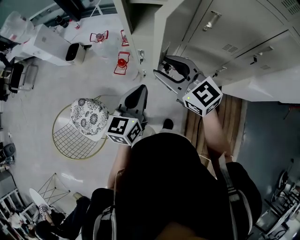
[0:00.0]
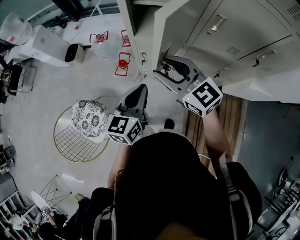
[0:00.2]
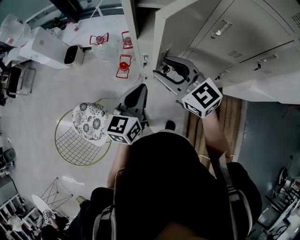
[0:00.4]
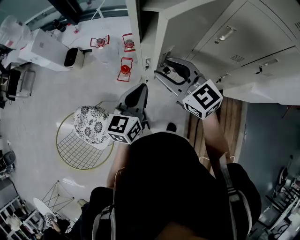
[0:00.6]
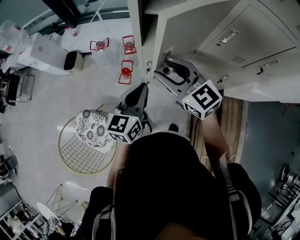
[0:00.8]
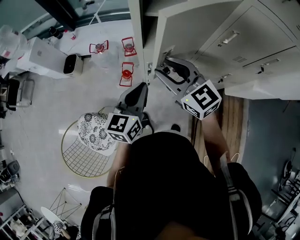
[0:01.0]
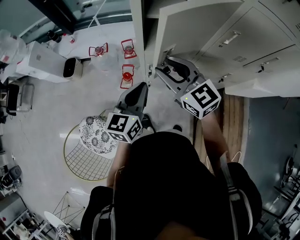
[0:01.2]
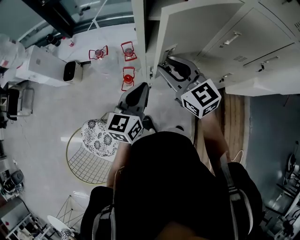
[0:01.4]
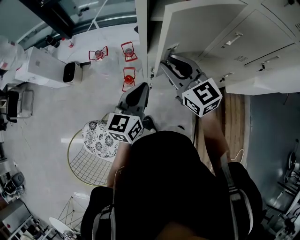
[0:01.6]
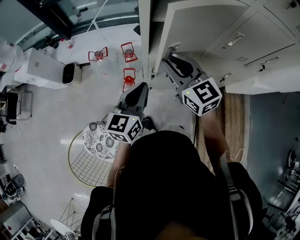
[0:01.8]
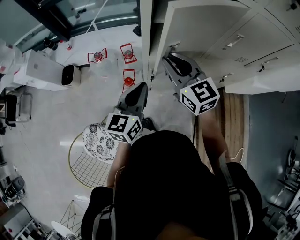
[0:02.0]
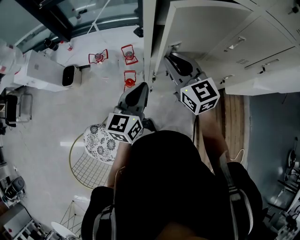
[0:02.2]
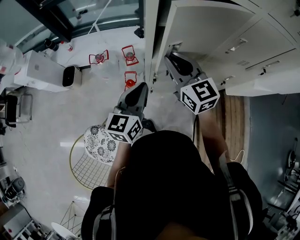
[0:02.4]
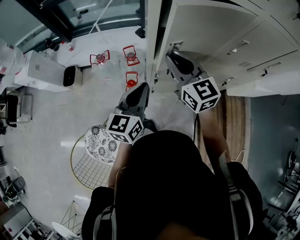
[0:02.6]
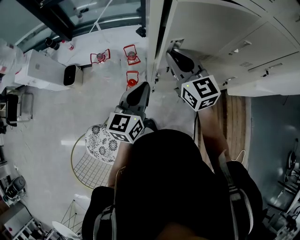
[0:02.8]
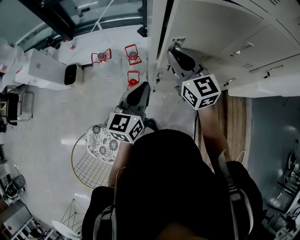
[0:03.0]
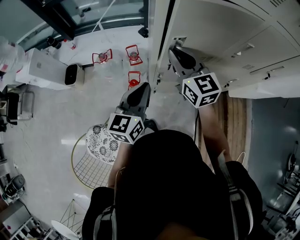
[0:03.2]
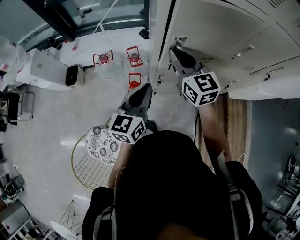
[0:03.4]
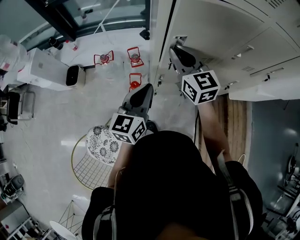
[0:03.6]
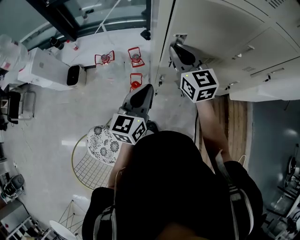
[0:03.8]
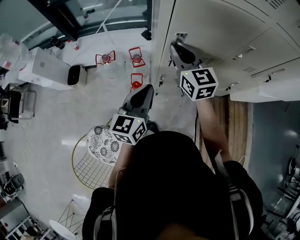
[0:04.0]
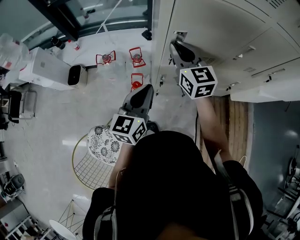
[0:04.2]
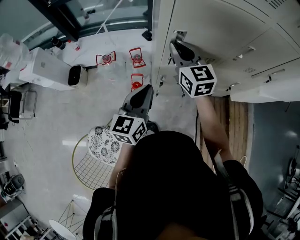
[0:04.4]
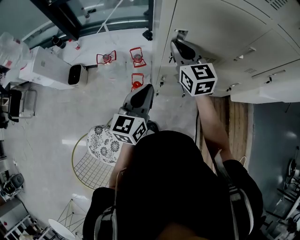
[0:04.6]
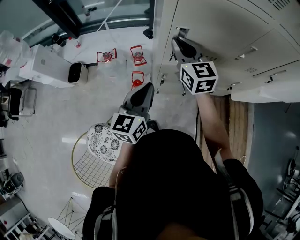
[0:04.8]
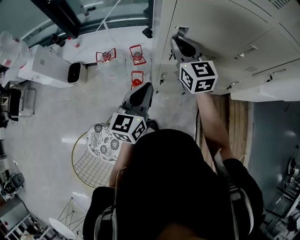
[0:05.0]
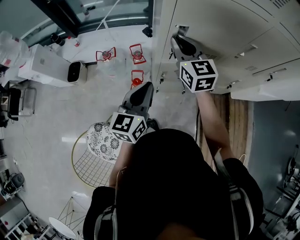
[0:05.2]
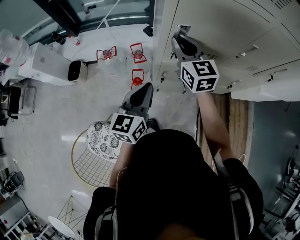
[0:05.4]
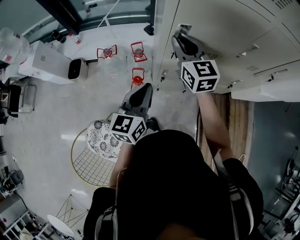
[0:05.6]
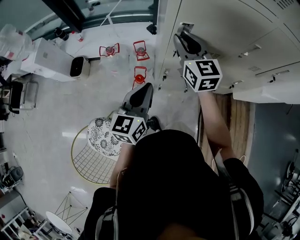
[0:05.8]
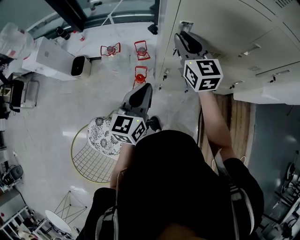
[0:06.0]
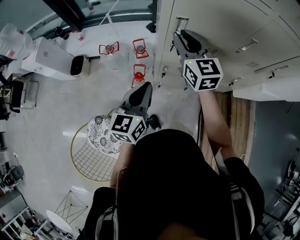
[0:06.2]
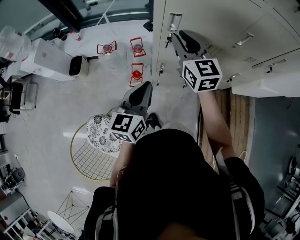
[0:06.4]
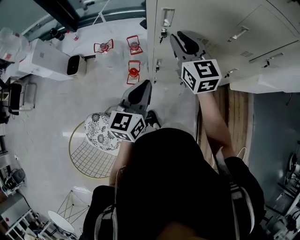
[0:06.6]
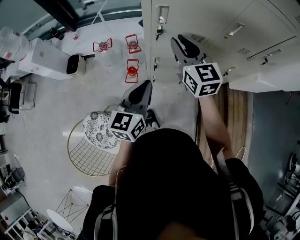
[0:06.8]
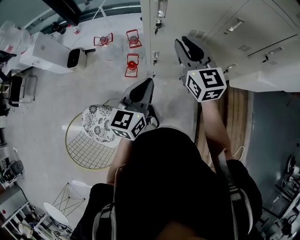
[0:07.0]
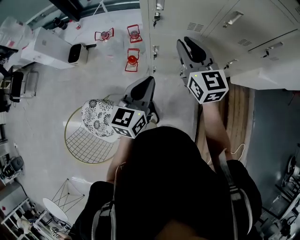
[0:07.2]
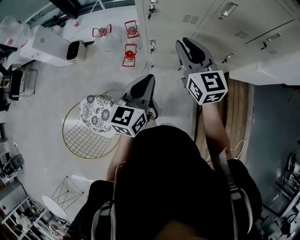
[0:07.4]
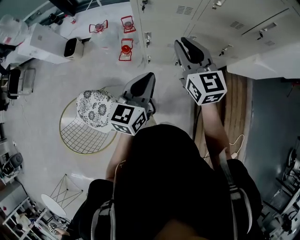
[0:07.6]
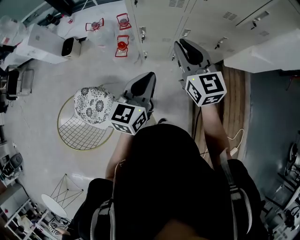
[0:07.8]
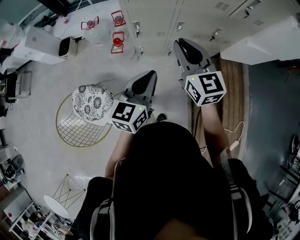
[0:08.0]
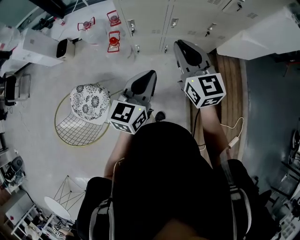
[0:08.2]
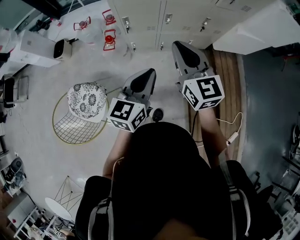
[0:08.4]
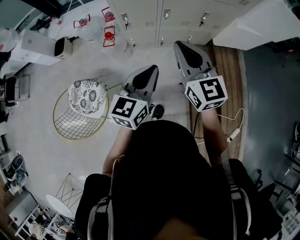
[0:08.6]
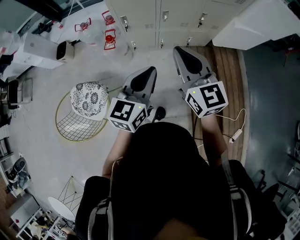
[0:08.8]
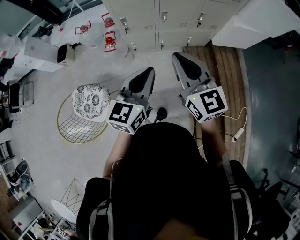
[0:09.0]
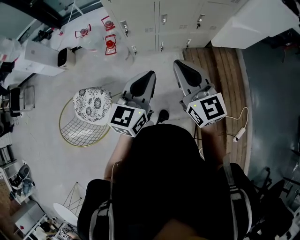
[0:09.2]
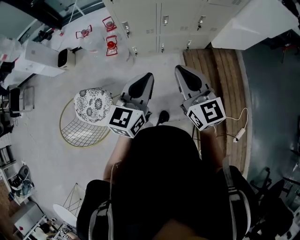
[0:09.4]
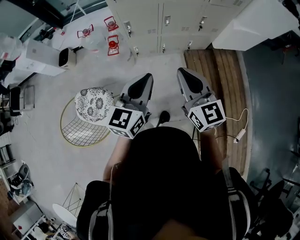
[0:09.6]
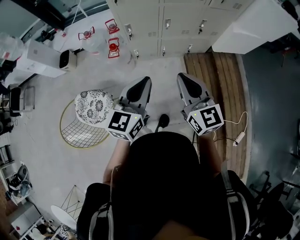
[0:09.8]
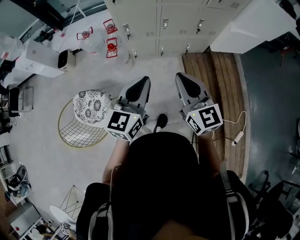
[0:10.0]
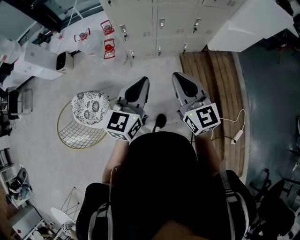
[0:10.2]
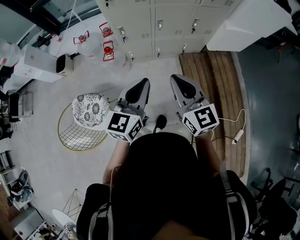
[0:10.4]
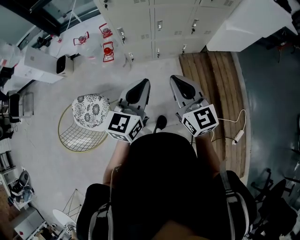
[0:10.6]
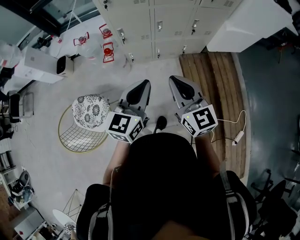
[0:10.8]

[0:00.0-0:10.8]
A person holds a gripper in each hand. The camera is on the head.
0:00.0 to 0:01.6: Both grippers move forward and to the left, some 15 cm. The right gripper closes up.
0:01.6 to 0:03.0: The right gripper is displaced forward by roughly 5 cm; the left gripper moves about 5 cm.
0:03.0 to 0:06.2: The grippers make only small movements.
0:06.2 to 0:07.8: The grippers both shift backward and to the right by approximately 25 cm.
0:07.8 to 0:09.2: The grippers both shift backward and to the right by about 20 cm.
0:09.2 to 0:10.8: The grippers make only small movements.

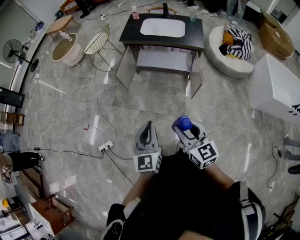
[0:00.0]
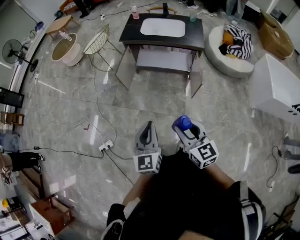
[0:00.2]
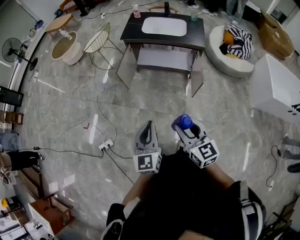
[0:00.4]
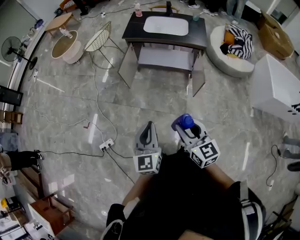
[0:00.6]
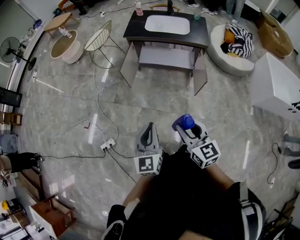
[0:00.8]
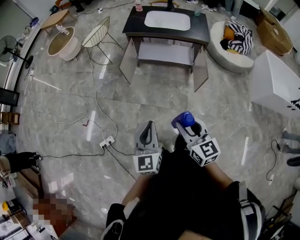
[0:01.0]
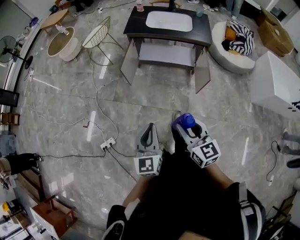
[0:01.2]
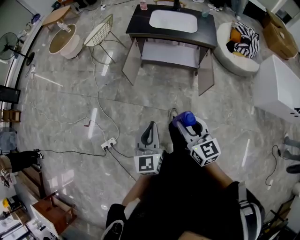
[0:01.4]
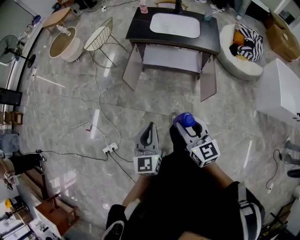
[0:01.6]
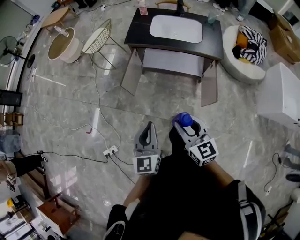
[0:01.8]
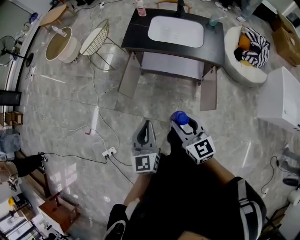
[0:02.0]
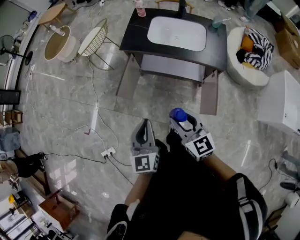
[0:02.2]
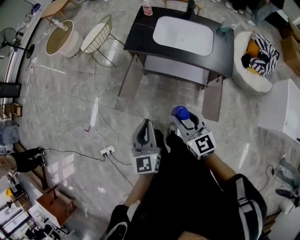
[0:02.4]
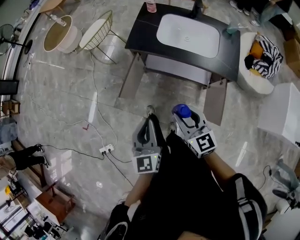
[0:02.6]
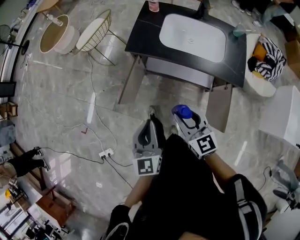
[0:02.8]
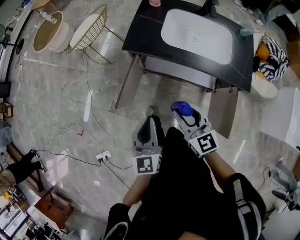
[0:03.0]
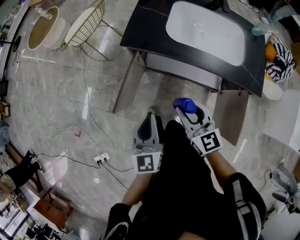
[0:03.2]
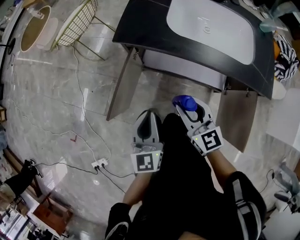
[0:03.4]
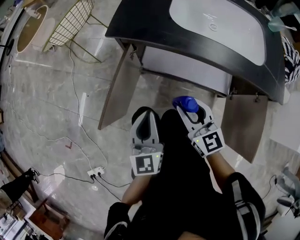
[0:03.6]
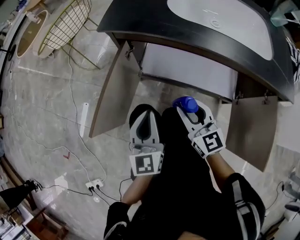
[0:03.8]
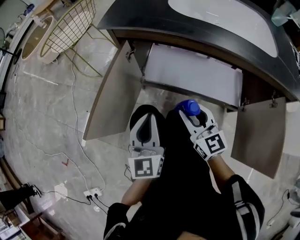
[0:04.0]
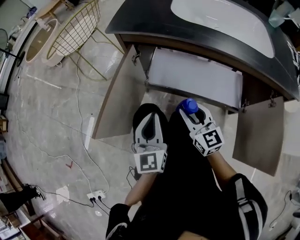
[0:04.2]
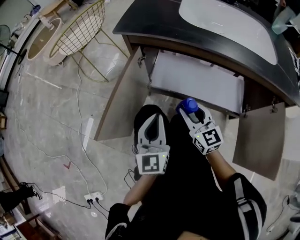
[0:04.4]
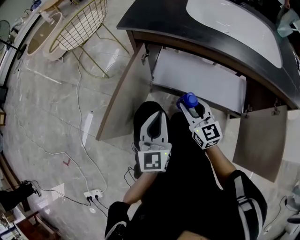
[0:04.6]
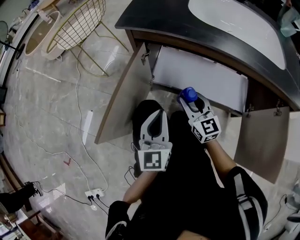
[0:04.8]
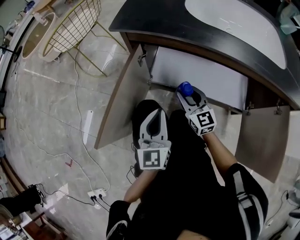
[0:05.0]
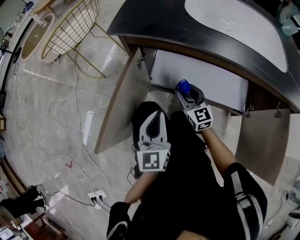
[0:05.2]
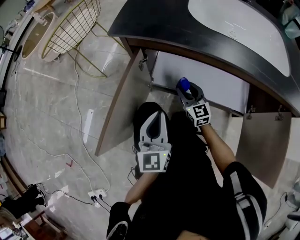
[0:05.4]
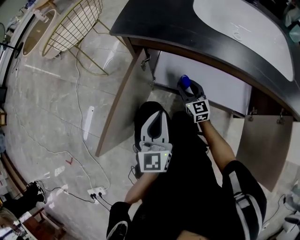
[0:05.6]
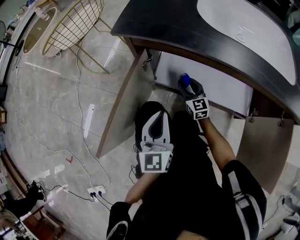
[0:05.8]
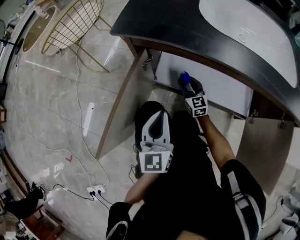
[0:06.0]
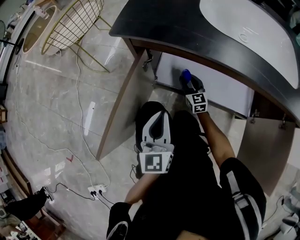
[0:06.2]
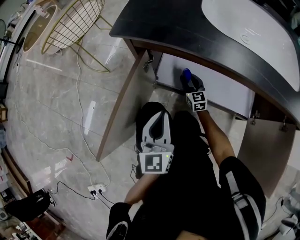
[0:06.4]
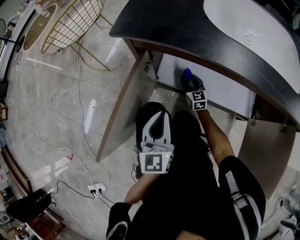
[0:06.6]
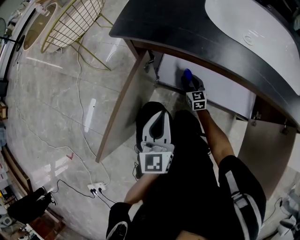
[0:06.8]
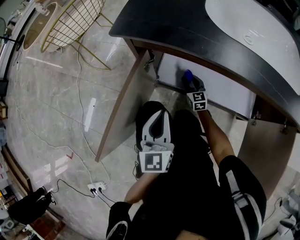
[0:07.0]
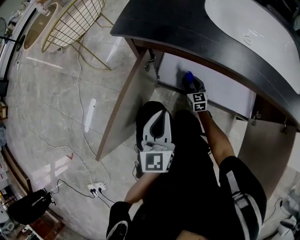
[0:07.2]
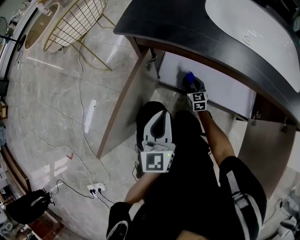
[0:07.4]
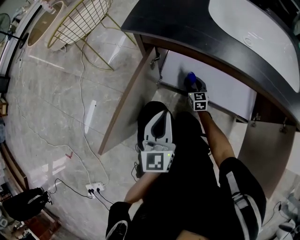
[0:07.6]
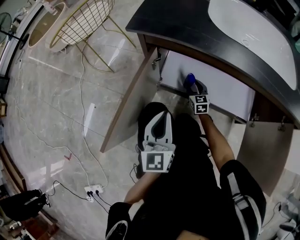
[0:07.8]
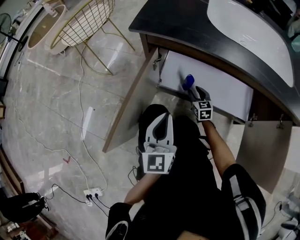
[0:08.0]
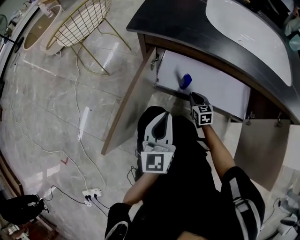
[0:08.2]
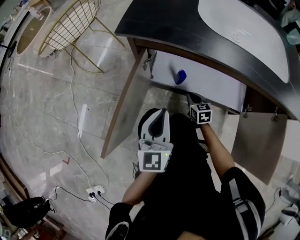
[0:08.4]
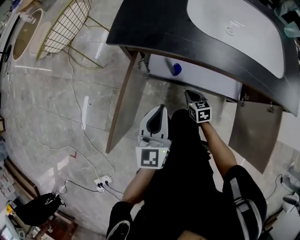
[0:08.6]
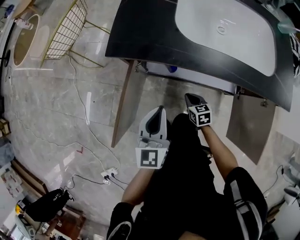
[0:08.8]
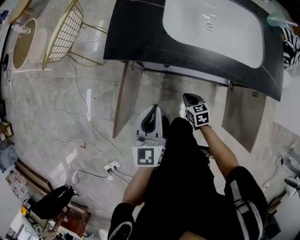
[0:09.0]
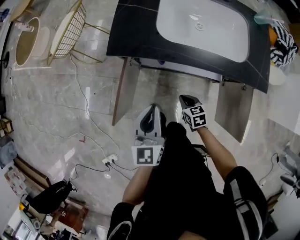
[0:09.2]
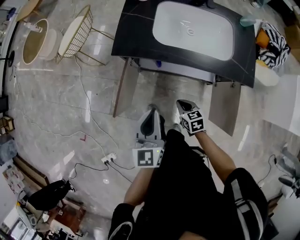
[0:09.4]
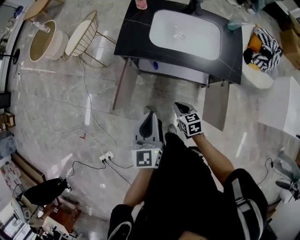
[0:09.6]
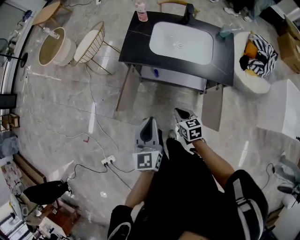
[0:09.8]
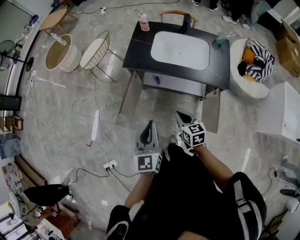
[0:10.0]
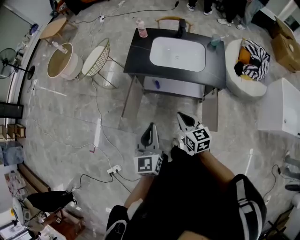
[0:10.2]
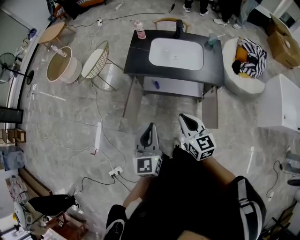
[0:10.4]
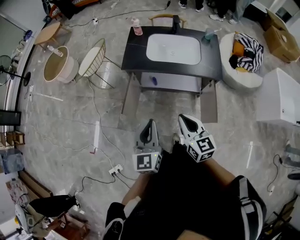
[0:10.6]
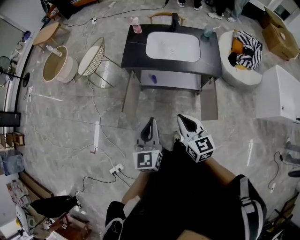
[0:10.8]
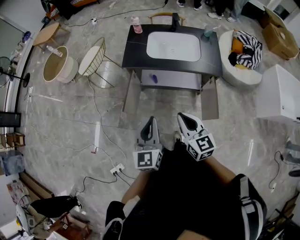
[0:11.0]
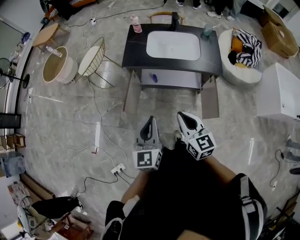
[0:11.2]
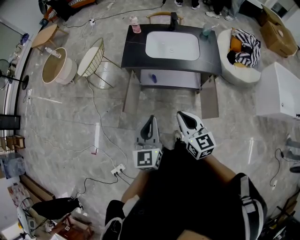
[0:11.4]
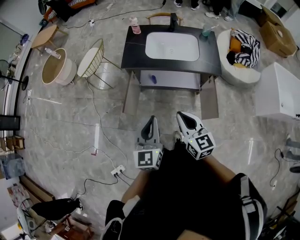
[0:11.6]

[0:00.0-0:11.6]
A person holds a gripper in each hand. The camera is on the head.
0:00.0 to 0:01.4: The right gripper moves forward and to the left, roughly 10 cm, while the left gripper is displaced to the left and forward by approximately 10 cm.
0:01.4 to 0:02.8: The two grippers travel together, forward, some 40 cm.
0:02.8 to 0:04.4: Both grippers move downward, some 40 cm.
0:04.4 to 0:05.8: The left gripper heads forward, covering roughly 5 cm; the right gripper travels forward and downward by approximately 25 cm.
0:05.8 to 0:07.2: The right gripper is displaced downward by about 10 cm.
0:07.2 to 0:08.8: The left gripper shifts roughly 15 cm upward. Meanwhile the right gripper travels backward and upward by some 20 cm, changes its angle by about 30 degrees, and closes up.
0:08.8 to 0:10.2: Both grippers travel together upward and backward, some 60 cm. The right gripper changes its angle by roughly 20 degrees.
0:10.2 to 0:11.6: The right gripper moves backward and upward, some 10 cm.

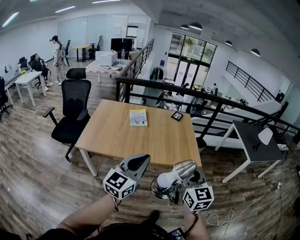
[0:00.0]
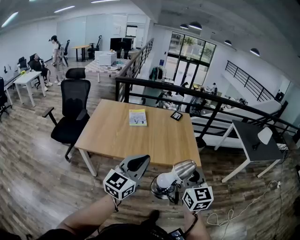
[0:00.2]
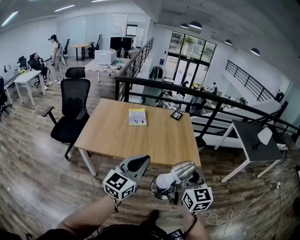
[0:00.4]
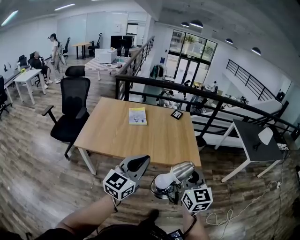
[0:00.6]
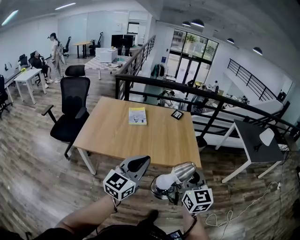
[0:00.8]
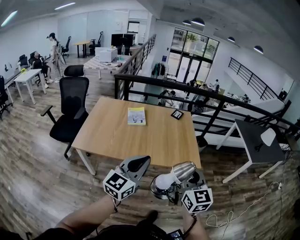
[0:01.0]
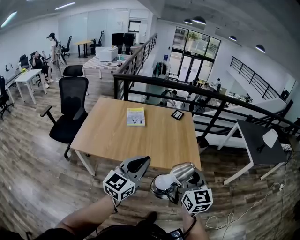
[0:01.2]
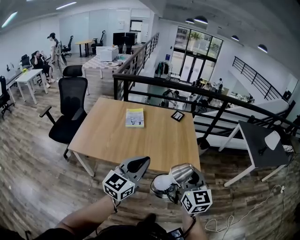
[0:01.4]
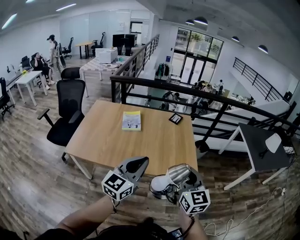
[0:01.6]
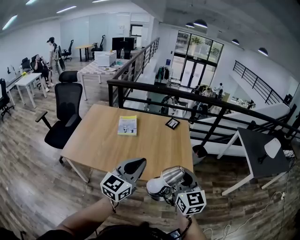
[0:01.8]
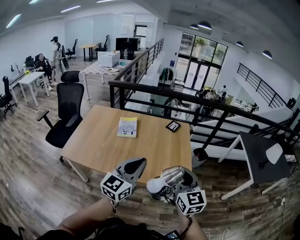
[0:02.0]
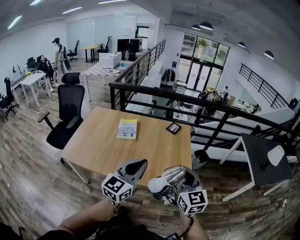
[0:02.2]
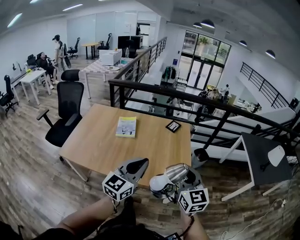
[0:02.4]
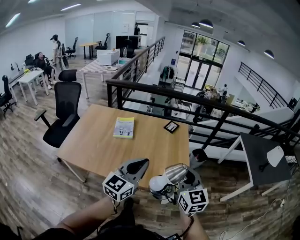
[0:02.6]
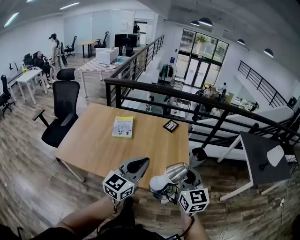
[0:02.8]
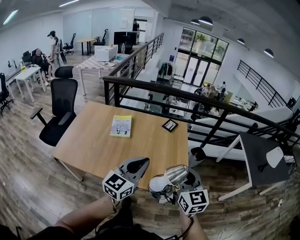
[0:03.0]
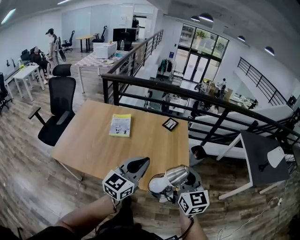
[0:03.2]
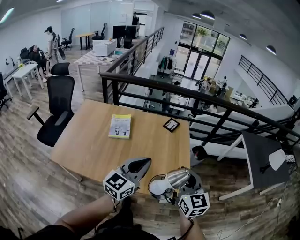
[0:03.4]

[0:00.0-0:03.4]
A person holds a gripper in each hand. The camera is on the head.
0:00.0 to 0:01.6: The right gripper moves forward, about 20 cm. The left gripper is displaced forward and to the right by about 20 cm.
0:01.6 to 0:03.4: The two grippers go about 20 cm forward.
